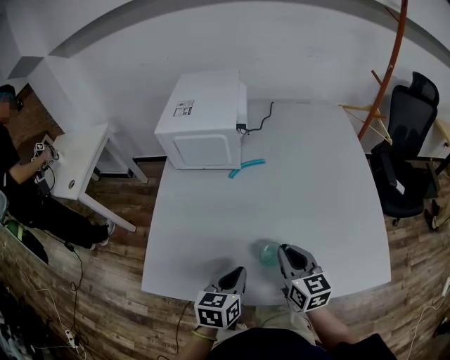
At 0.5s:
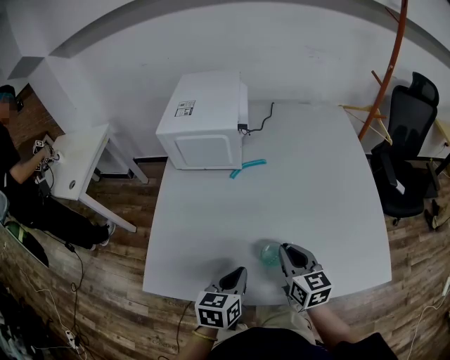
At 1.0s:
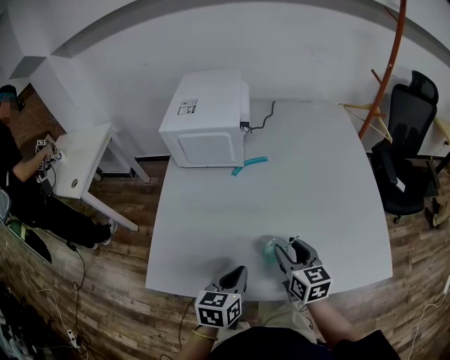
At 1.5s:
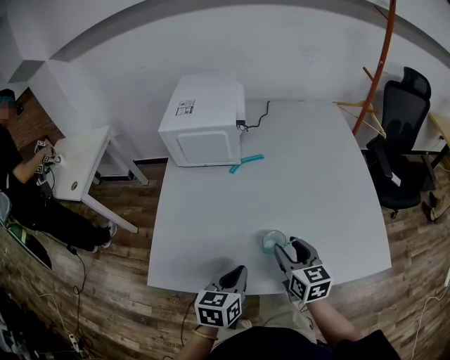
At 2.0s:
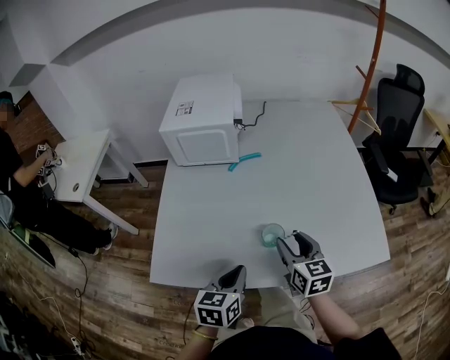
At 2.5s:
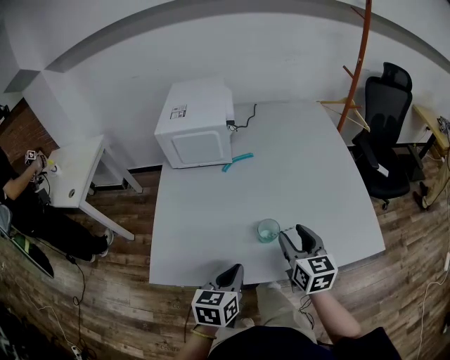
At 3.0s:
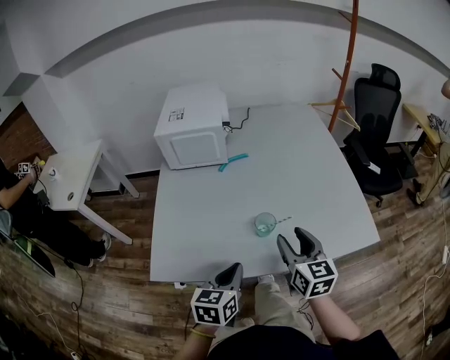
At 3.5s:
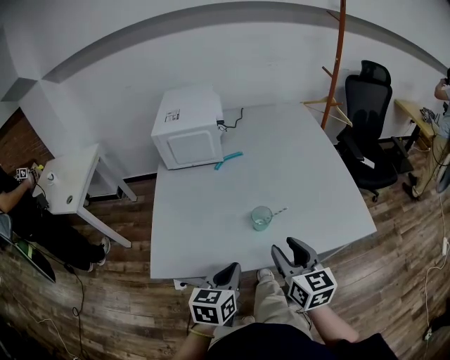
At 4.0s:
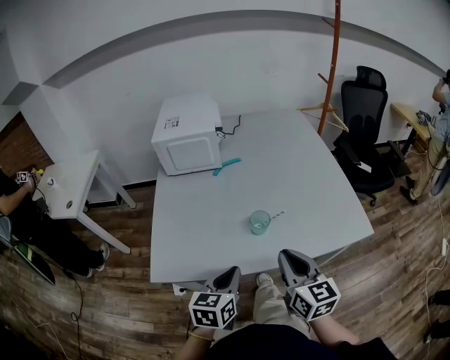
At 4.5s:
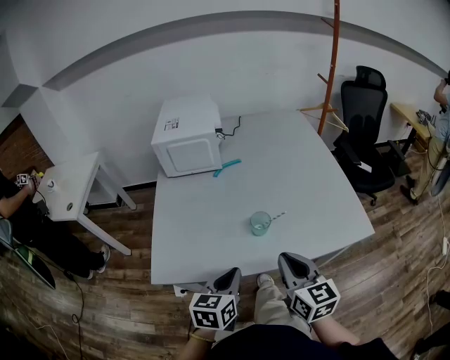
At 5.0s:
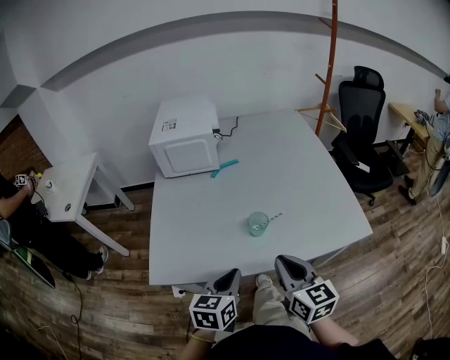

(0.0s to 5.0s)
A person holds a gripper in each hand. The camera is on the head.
0.0s - 2.5s: The left gripper shifts some 5 cm backward; the right gripper shifts by about 5 cm, and opens its fingers.
2.5s - 5.0s: The right gripper travels backward by about 15 cm, and closes its fingers, while the left gripper travels backward by some 5 cm.

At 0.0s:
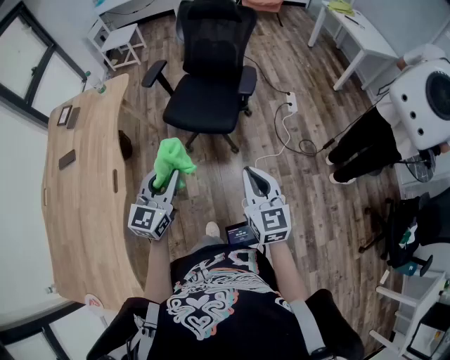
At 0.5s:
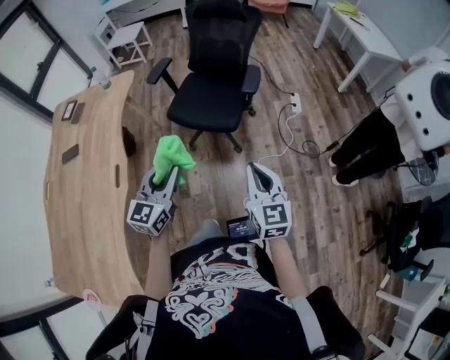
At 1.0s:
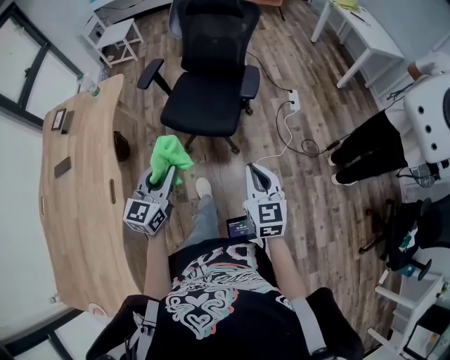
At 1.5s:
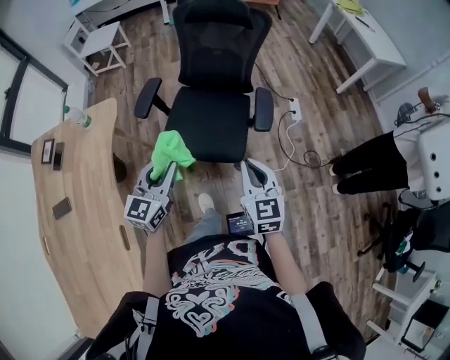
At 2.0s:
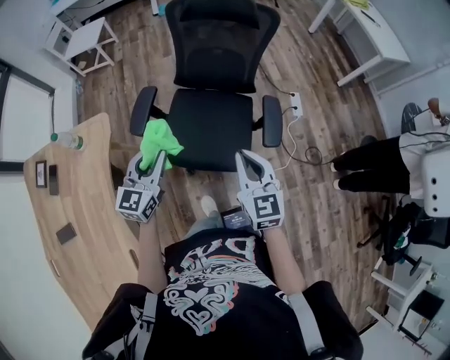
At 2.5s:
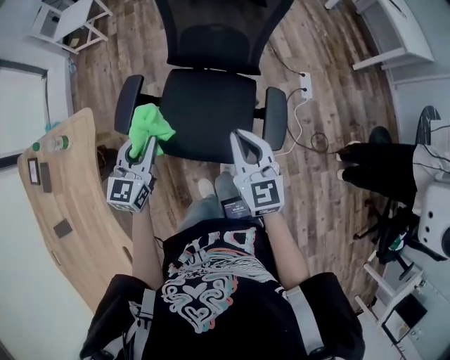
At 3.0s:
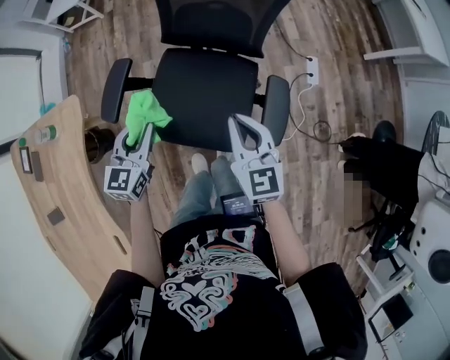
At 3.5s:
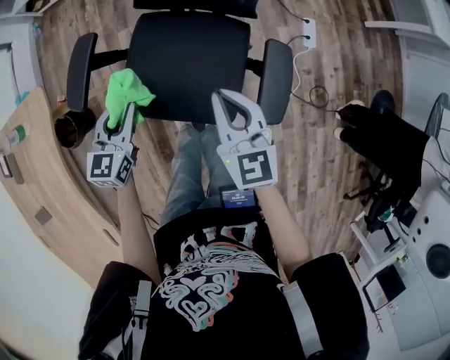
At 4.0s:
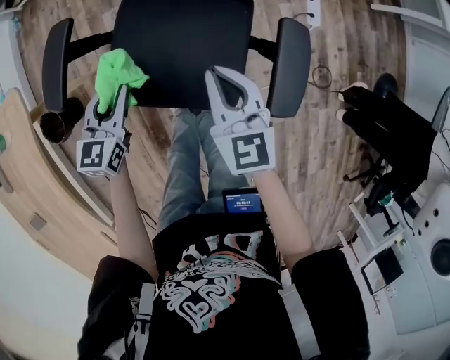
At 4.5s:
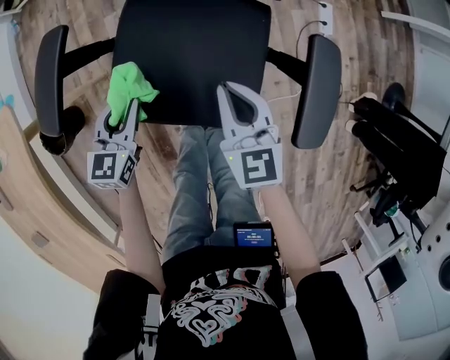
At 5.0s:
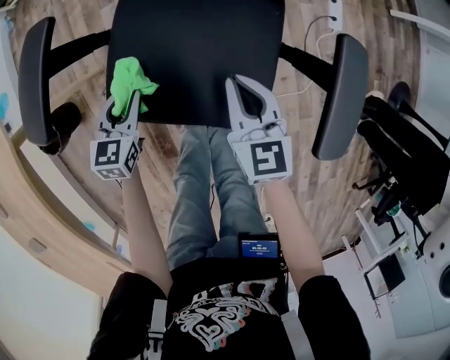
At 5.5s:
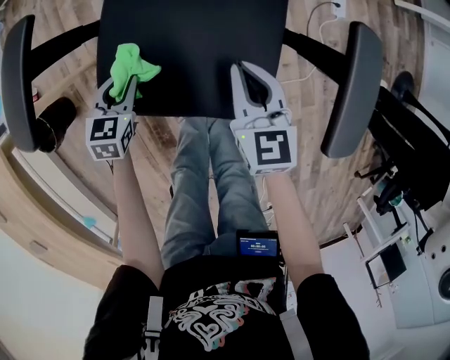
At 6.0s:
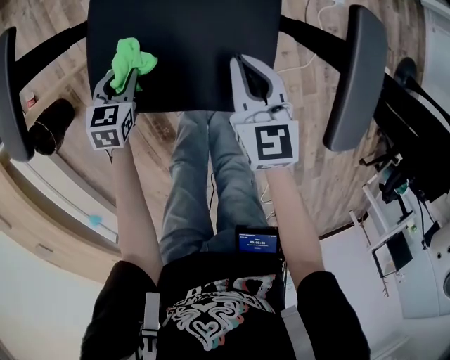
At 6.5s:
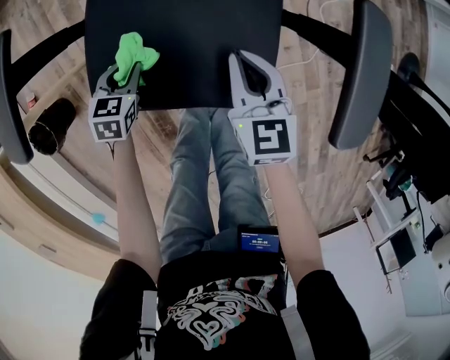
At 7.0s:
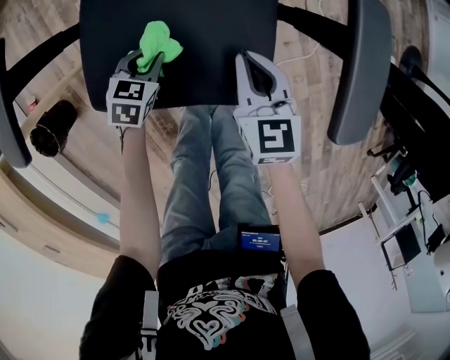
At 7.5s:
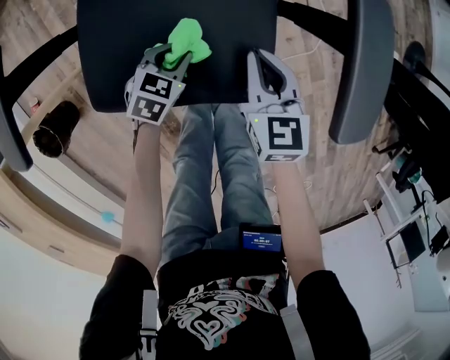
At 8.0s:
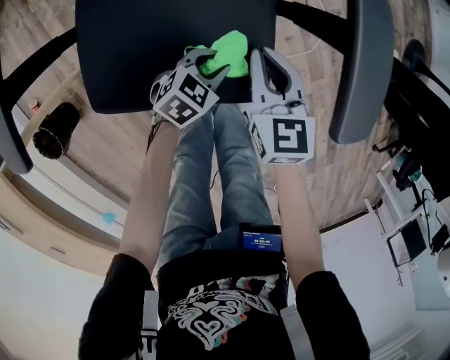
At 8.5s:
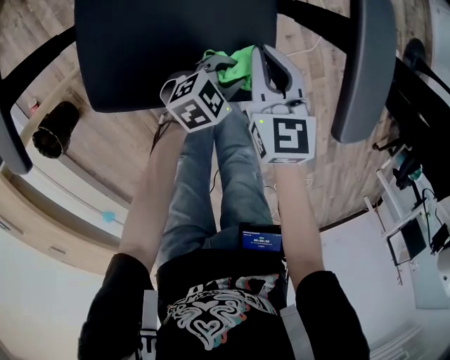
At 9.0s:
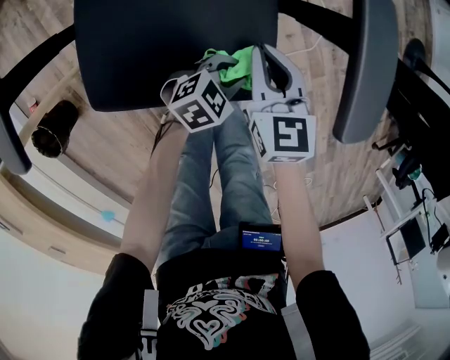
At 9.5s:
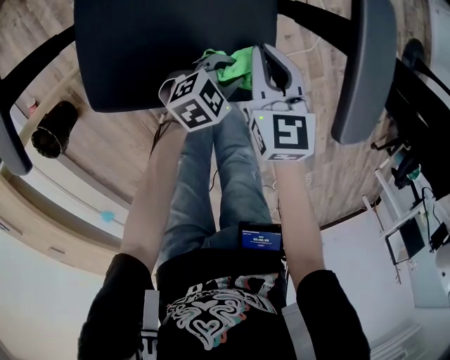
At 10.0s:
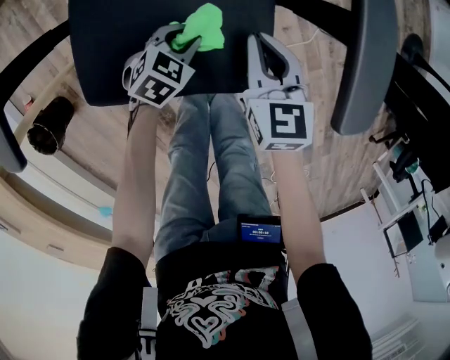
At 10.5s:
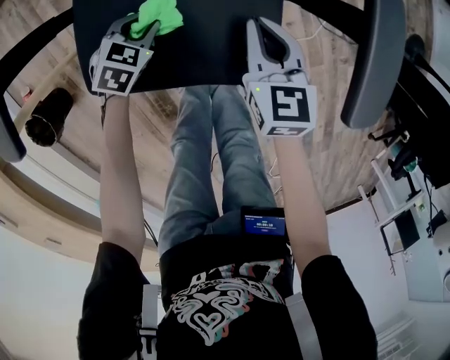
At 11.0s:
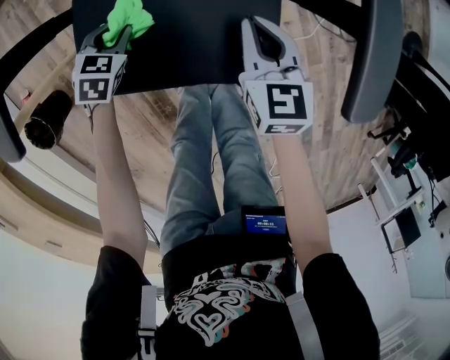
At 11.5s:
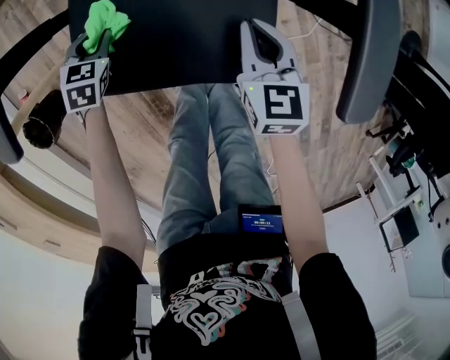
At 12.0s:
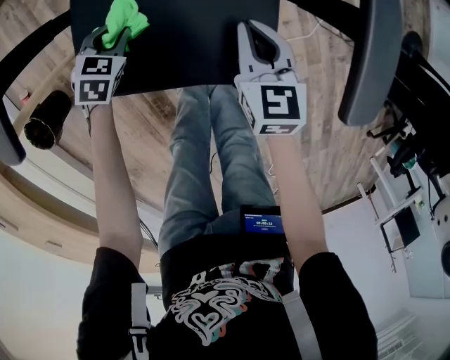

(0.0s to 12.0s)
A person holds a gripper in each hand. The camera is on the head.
0.0s - 2.0s: The two grippers travel together, forward, about 50 cm.
2.0s - 4.0s: Both grippers travel together downward and forward, roughly 30 cm.
4.0s - 6.0s: The two grippers go about 20 cm downward. The left gripper rotates some 30 degrees.
6.0s - 8.0s: The left gripper shifts by some 25 cm, and changes its angle by roughly 40 degrees.
8.0s - 10.0s: The left gripper goes roughly 5 cm to the left.
10.0s - 12.0s: The left gripper heads to the left, covering about 15 cm, and turns by some 20 degrees.

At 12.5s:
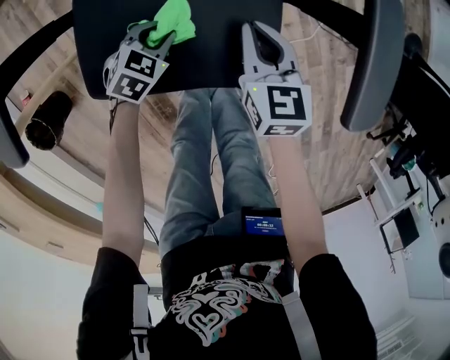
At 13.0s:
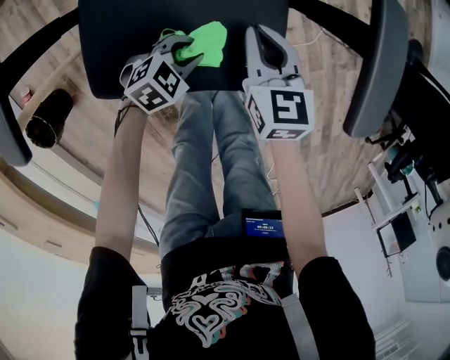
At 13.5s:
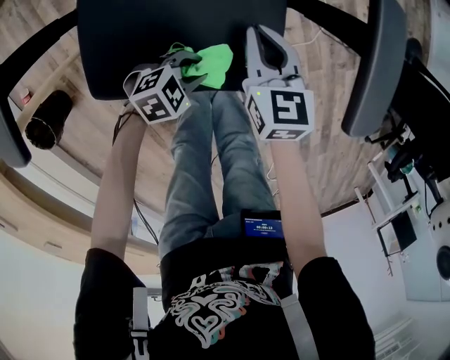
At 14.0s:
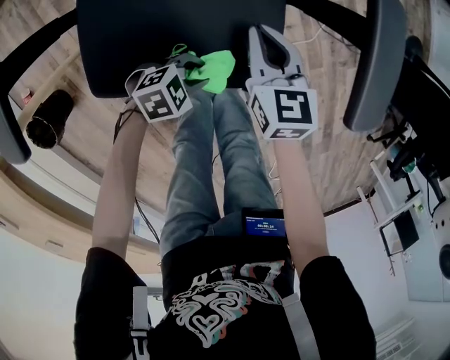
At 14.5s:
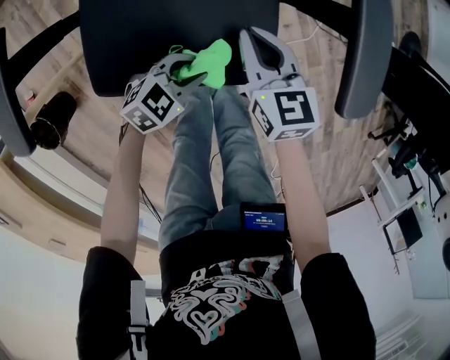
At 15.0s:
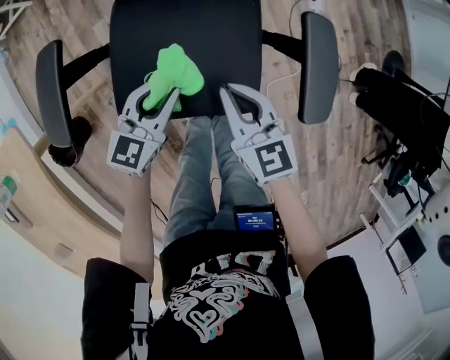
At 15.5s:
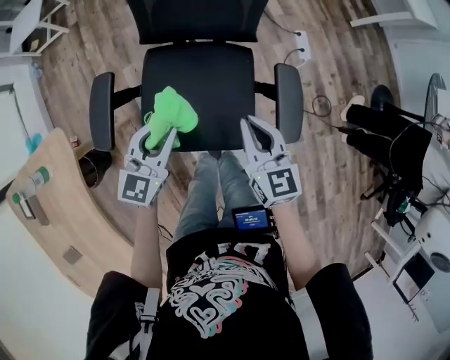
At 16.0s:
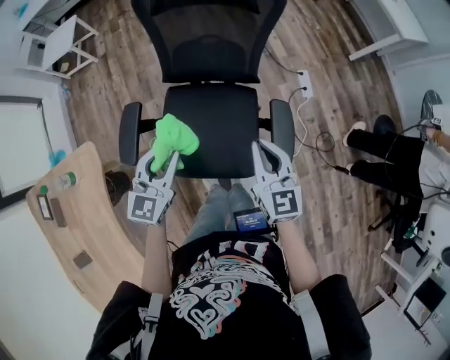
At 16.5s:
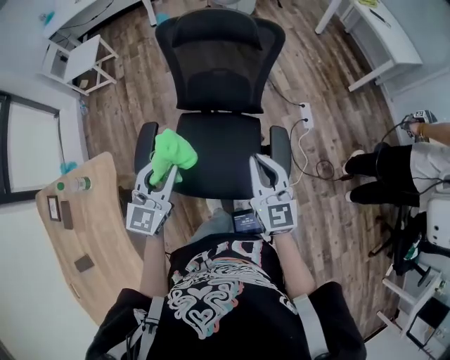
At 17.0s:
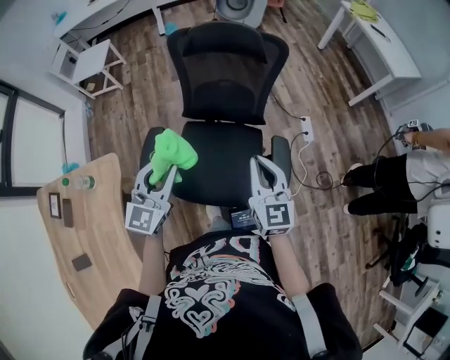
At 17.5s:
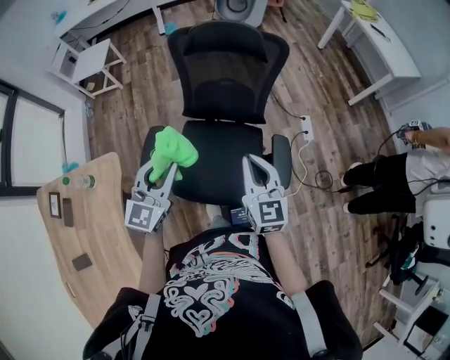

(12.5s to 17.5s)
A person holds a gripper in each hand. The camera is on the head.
12.5s - 15.0s: The right gripper is displaced upward by about 15 cm. The left gripper is displaced upward by roughly 25 cm, and tilts its fingers approximately 30 degrees upward.
15.0s - 17.5s: Both grippers travel together upward, approximately 35 cm. The left gripper turns by approximately 30 degrees; the right gripper swivels some 20 degrees.

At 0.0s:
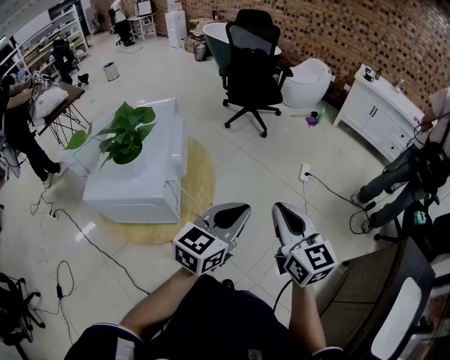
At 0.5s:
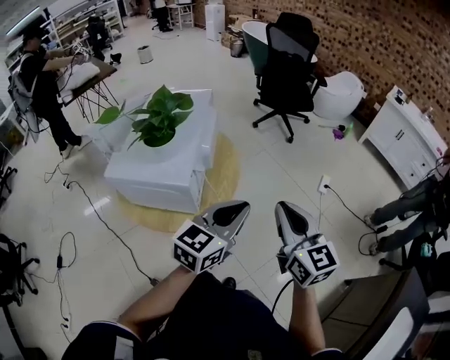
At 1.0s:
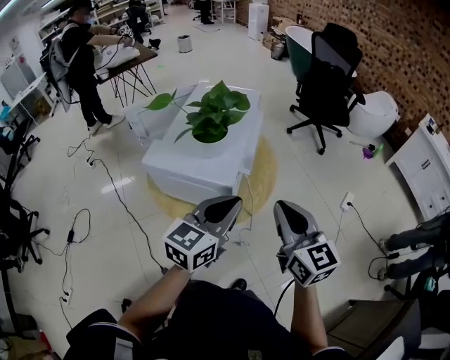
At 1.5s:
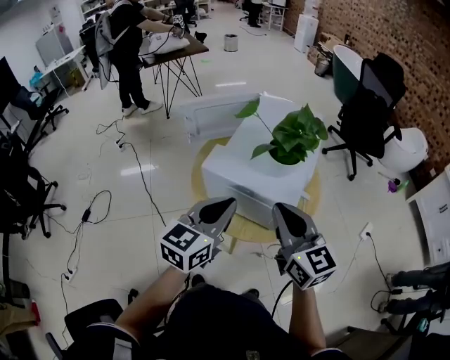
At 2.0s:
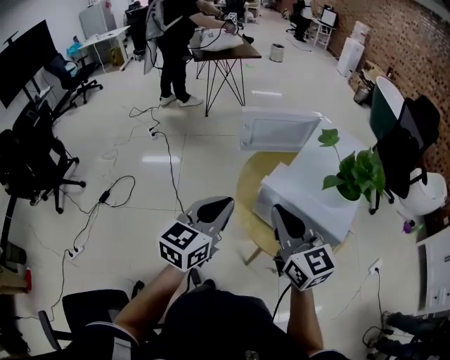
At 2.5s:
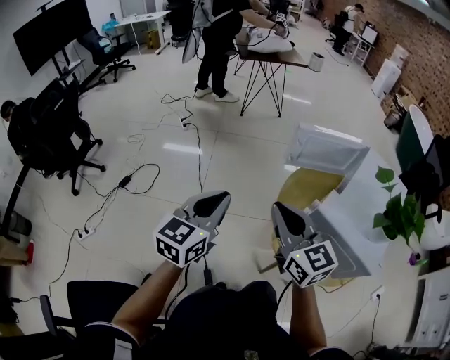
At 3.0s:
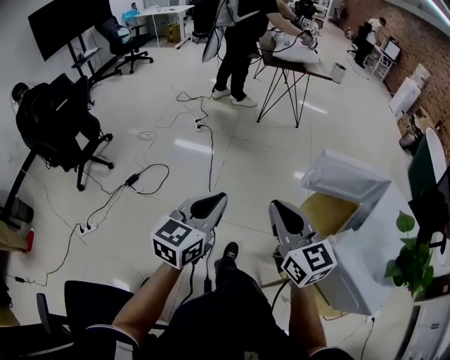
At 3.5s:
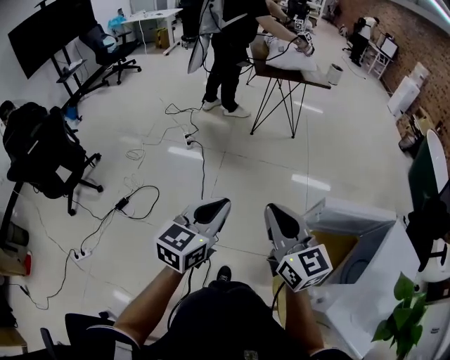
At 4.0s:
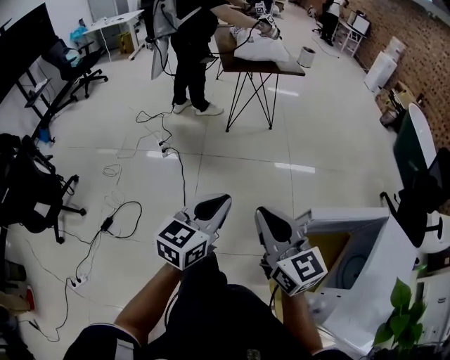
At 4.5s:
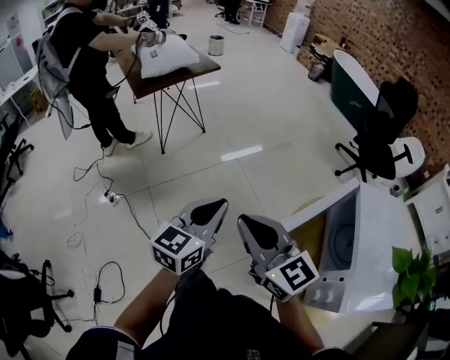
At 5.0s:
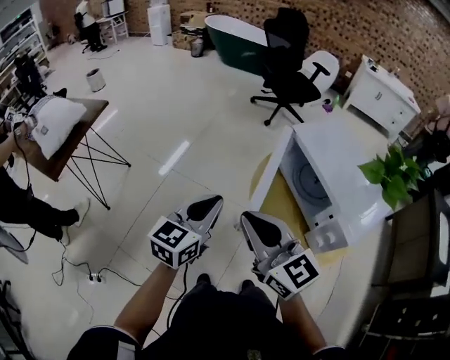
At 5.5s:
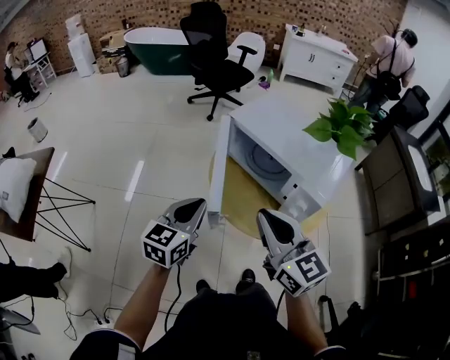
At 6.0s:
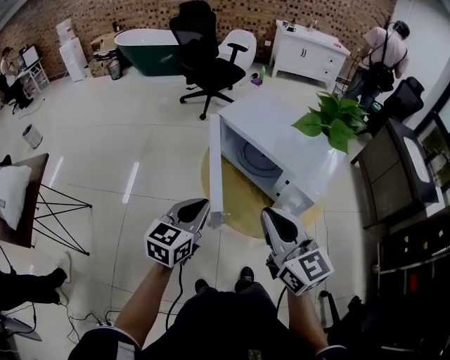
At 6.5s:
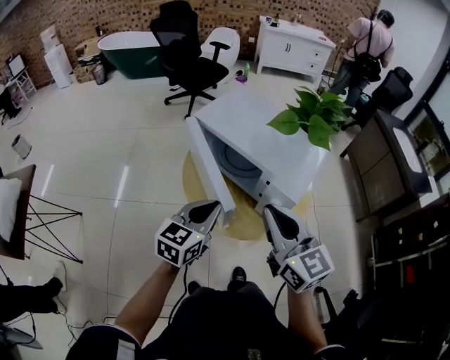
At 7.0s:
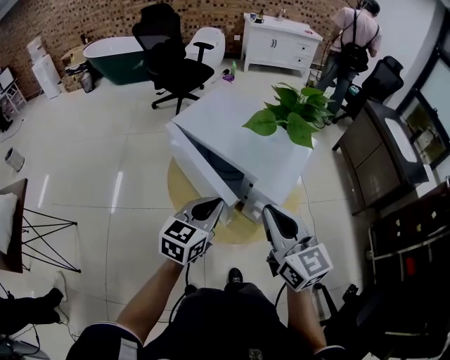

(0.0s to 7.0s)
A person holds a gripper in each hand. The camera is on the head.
0.0s - 2.0s: Both grippers are carried about 50 cm. The right gripper changes its angle by about 40 degrees. The left gripper turns by about 50 degrees.
2.0s - 3.5s: The grippers both shift forward and to the left by some 35 cm.
3.5s - 5.0s: The left gripper shifts by roughly 30 cm, and swivels approximately 70 degrees, while the right gripper changes place by approximately 20 cm, and rotates about 60 degrees.
5.0s - 7.0s: The left gripper ends up some 25 cm from where it was, and turns by some 30 degrees, while the right gripper ends up roughly 25 cm from where it was, and turns by about 40 degrees.
